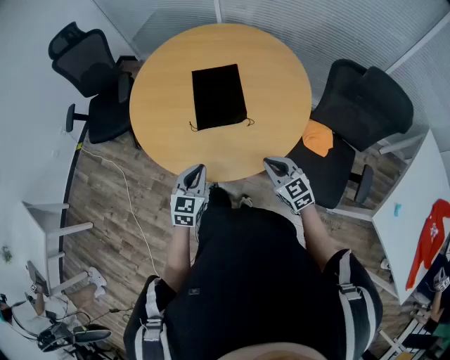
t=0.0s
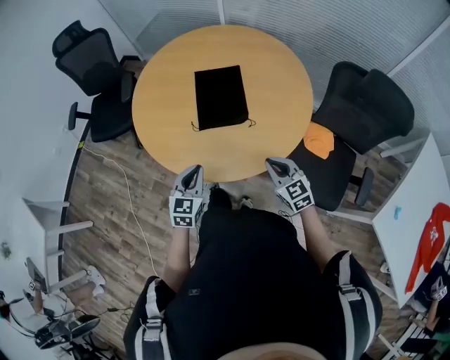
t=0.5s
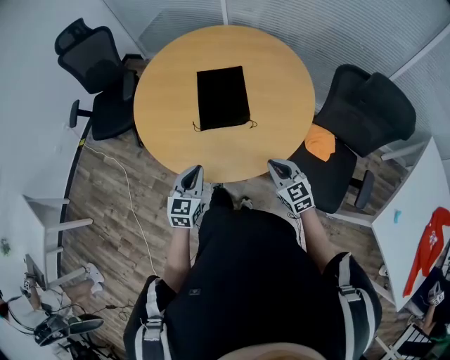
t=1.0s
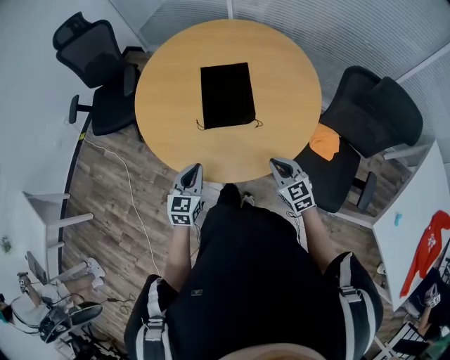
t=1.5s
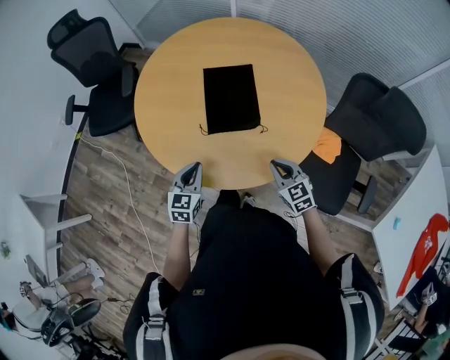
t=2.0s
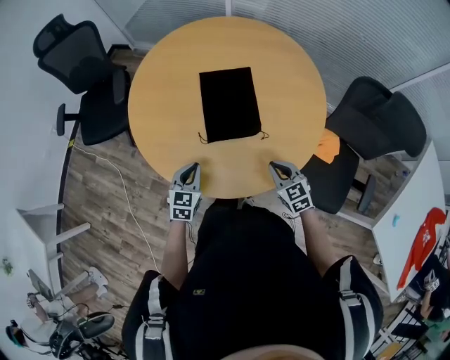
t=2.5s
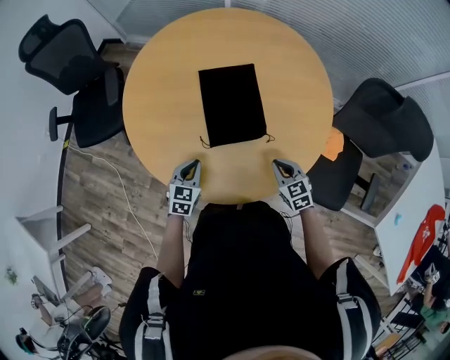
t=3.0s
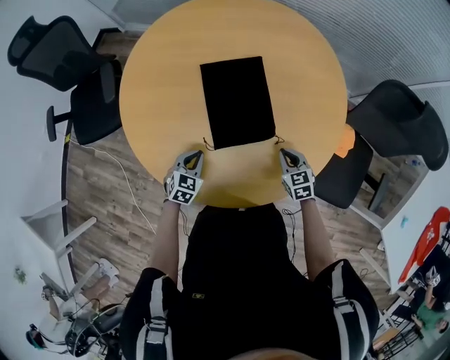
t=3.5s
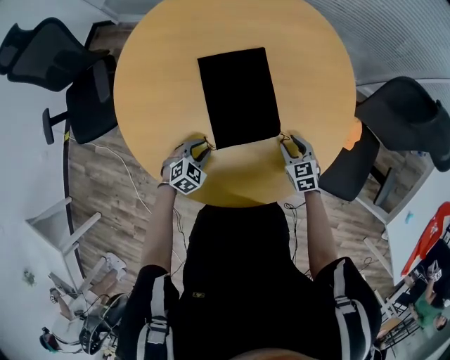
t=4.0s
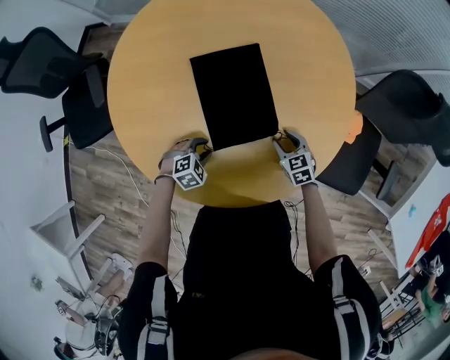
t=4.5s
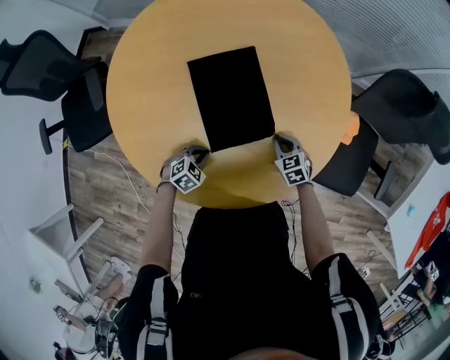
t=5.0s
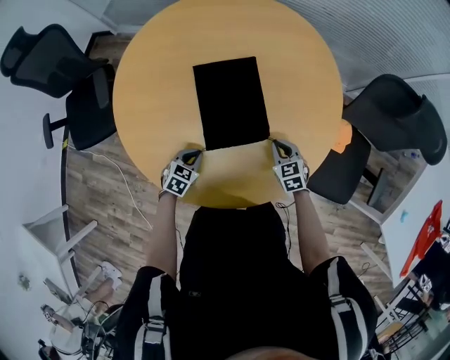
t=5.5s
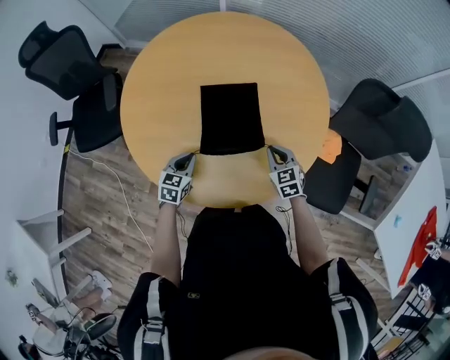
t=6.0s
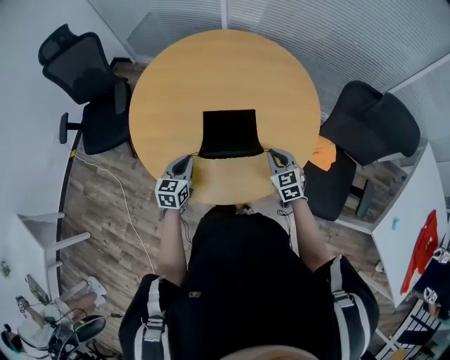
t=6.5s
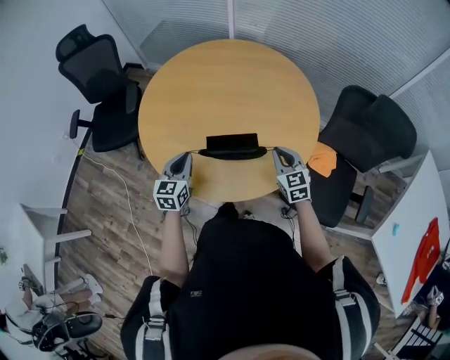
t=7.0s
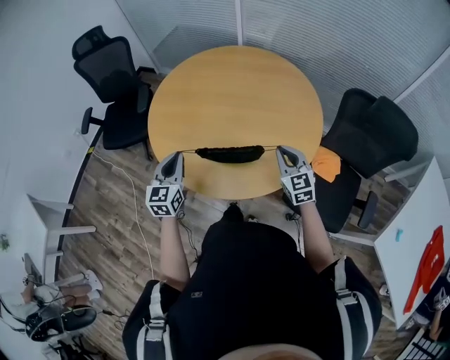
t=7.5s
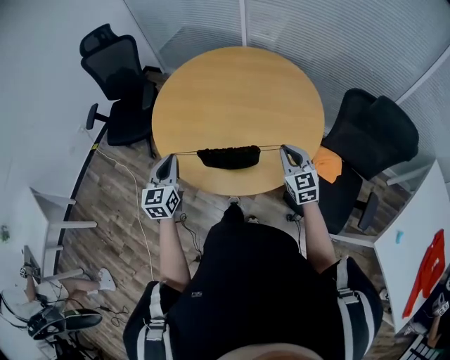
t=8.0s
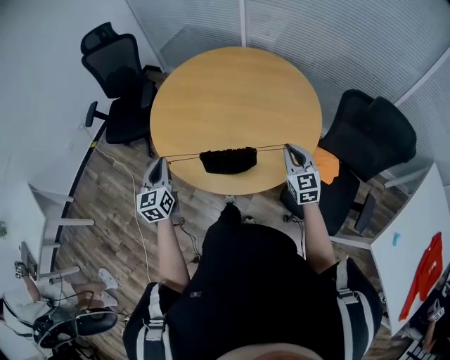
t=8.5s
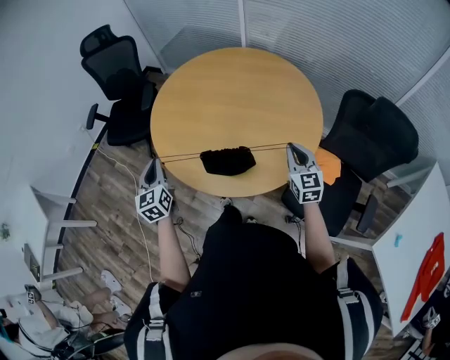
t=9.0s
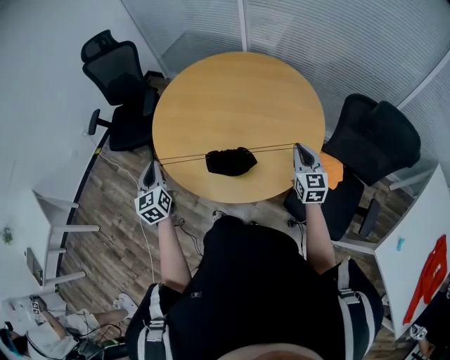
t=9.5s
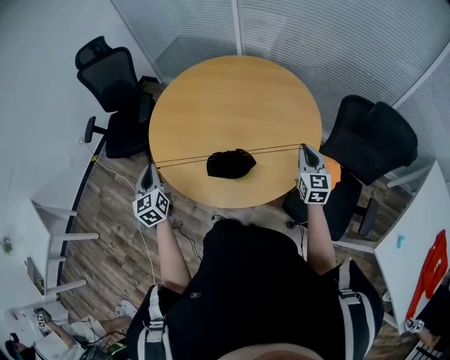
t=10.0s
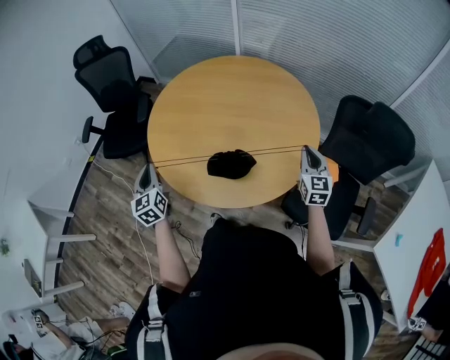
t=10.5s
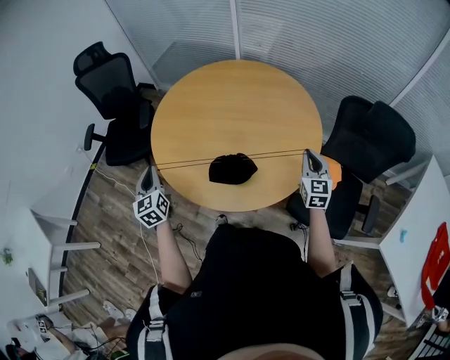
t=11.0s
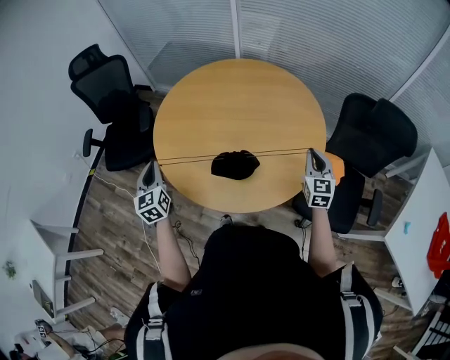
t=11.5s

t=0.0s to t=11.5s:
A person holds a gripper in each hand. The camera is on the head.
t=0.0s to t=2.0s: The right gripper shifts about 5 cm forward. The left gripper is displaced forward and to the left by about 10 cm.
t=2.0s to t=4.0s: The two grippers go some 20 cm downward. The left gripper turns by roughly 50 degrees; the right gripper changes its angle by approximately 20 degrees, and opens up.
t=4.0s to t=6.0s: The grippers both shift upward by some 10 cm. The left gripper changes its angle by approximately 40 degrees; the right gripper closes.
t=6.0s to t=7.5s: Both grippers travel together upward and backward, approximately 20 cm. The right gripper rotates some 20 degrees, while the left gripper swivels some 30 degrees.
t=7.5s to t=9.5s: The left gripper goes approximately 10 cm to the left, and rotates approximately 30 degrees, while the right gripper shifts about 10 cm to the right.
t=9.5s to t=11.5s: The left gripper moves forward and to the left, approximately 10 cm.

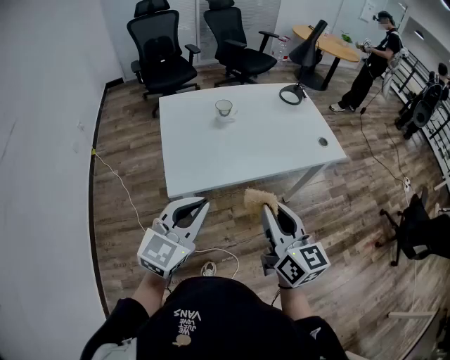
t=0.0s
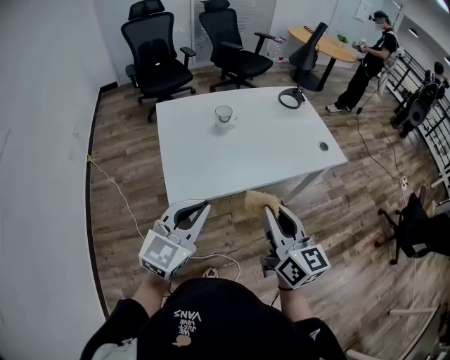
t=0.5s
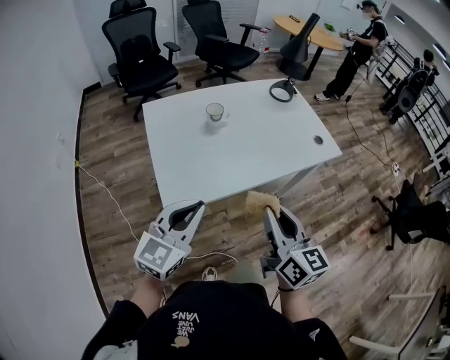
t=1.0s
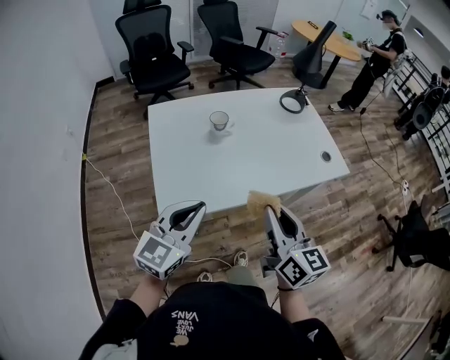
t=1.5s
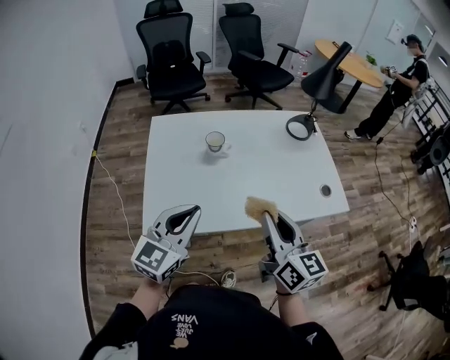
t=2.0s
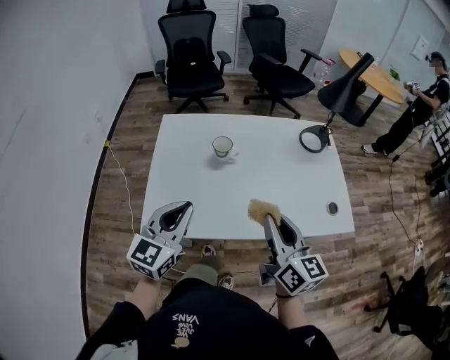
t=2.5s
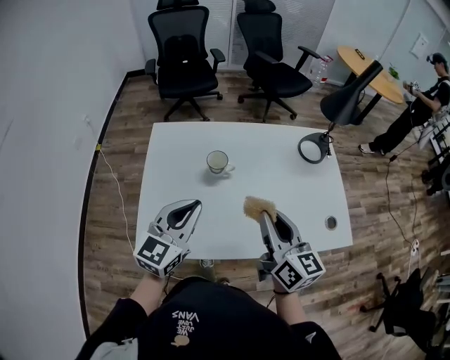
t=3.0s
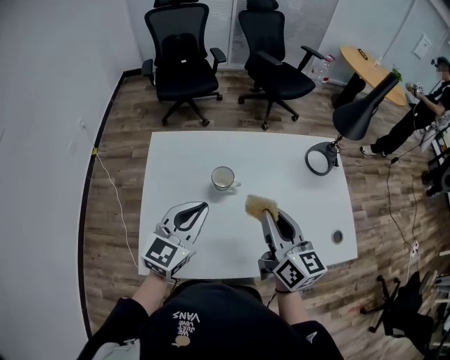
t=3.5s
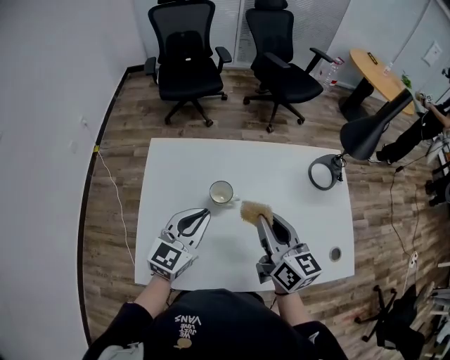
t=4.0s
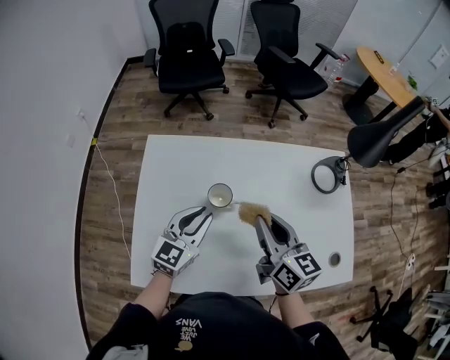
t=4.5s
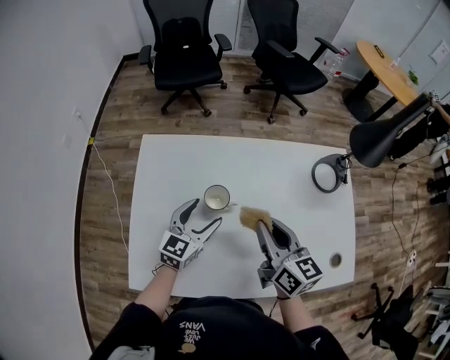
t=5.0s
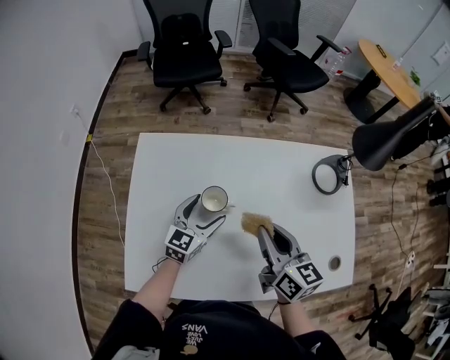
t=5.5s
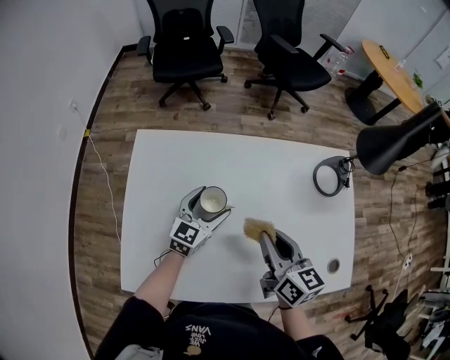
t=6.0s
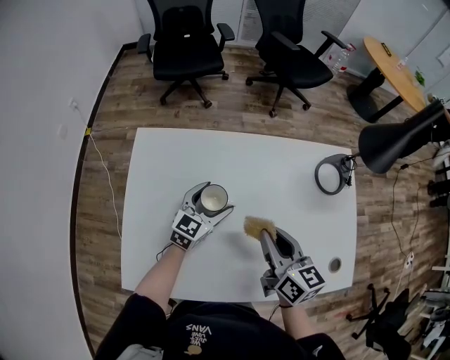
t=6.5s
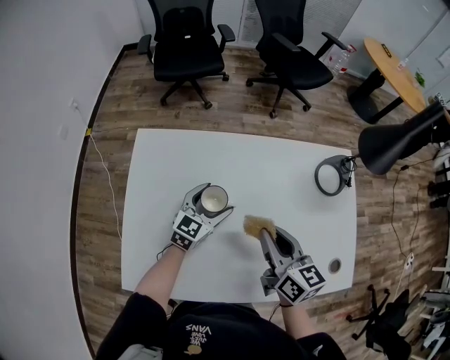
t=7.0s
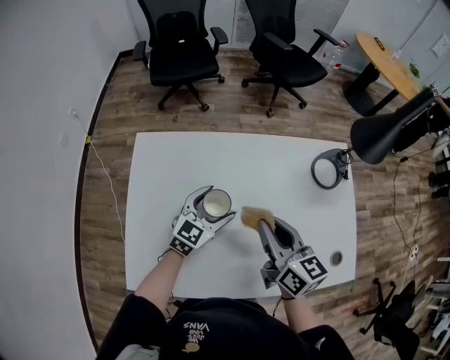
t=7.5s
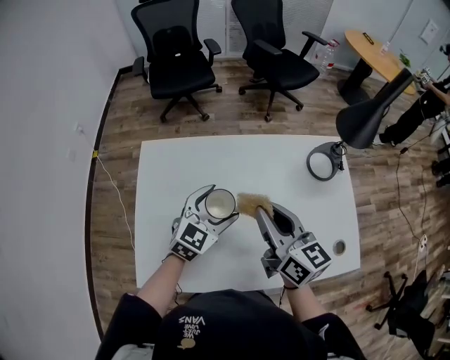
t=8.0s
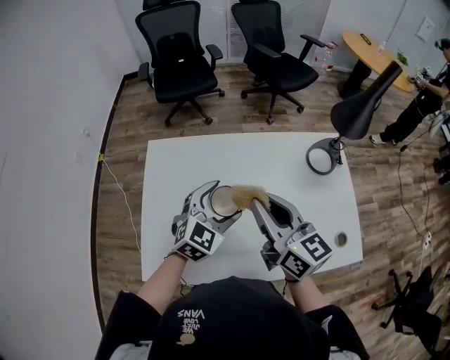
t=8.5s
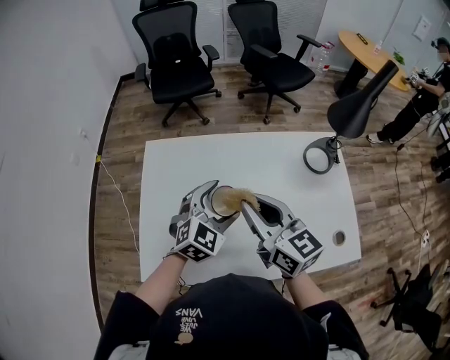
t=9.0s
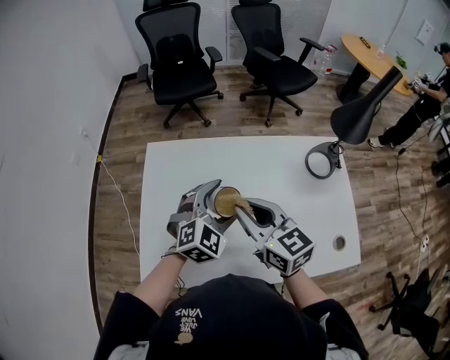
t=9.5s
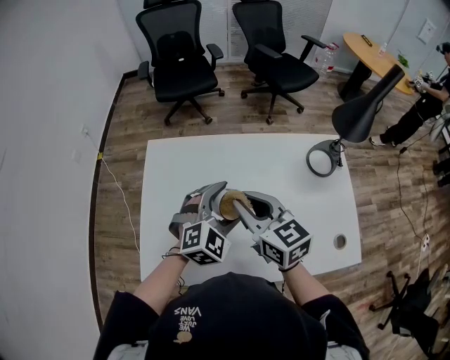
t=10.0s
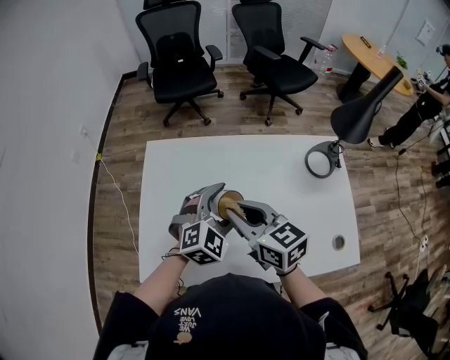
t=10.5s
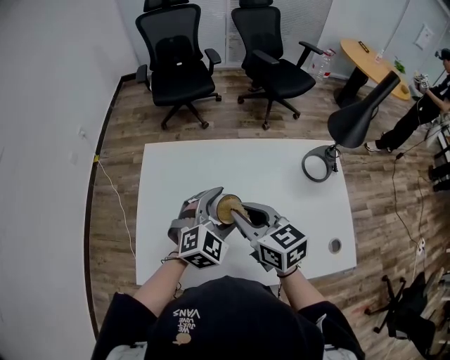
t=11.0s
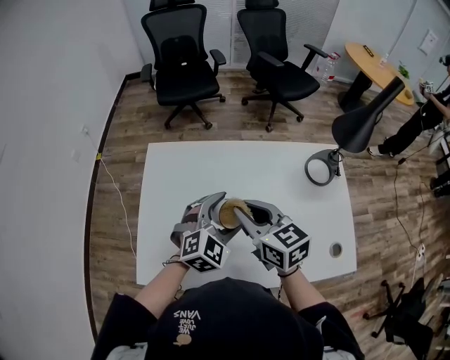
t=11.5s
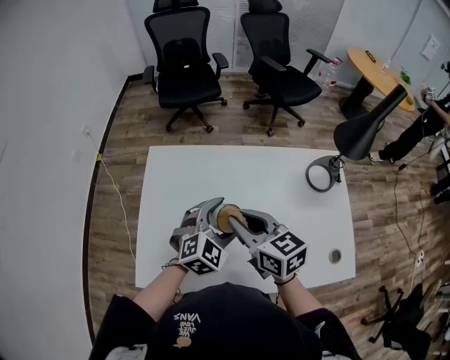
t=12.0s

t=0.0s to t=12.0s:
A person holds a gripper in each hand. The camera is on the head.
t=0.0s to t=2.0s: The two grippers go roughly 20 cm forward.
t=2.0s to t=4.0s: Both grippers move forward, roughly 25 cm.
t=4.0s to t=6.0s: The left gripper travels downward and forward by roughly 20 cm, and opens. Meanwhile the right gripper is displaced downward by approximately 5 cm.
t=6.0s to t=8.0s: Both grippers move upward, some 10 cm.
t=8.0s to t=10.0s: The right gripper is displaced to the left by roughly 5 cm, and turns by some 20 degrees. Meanwhile the left gripper rotates approximately 30 degrees.
t=10.0s to t=12.0s: The grippers move only a little.

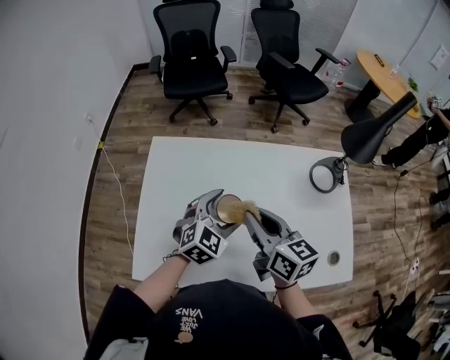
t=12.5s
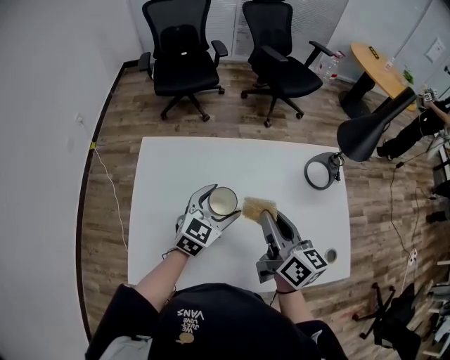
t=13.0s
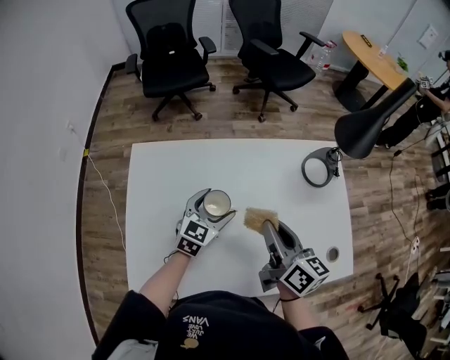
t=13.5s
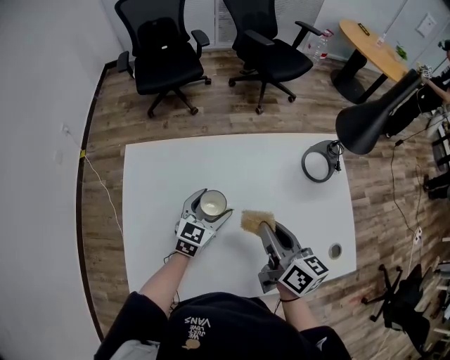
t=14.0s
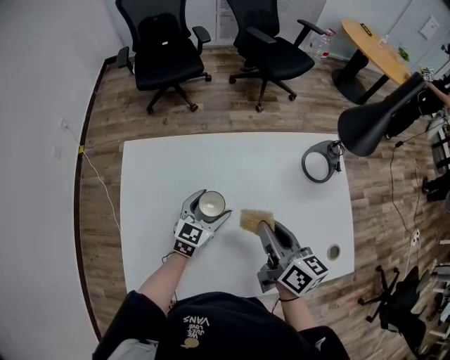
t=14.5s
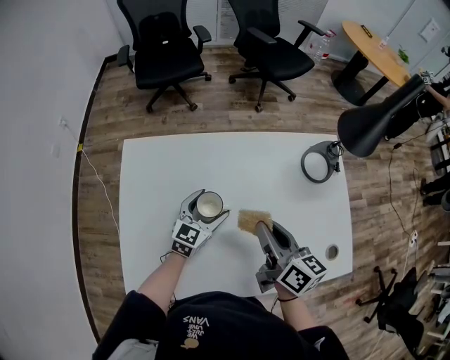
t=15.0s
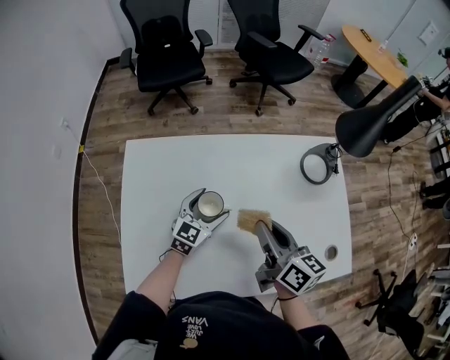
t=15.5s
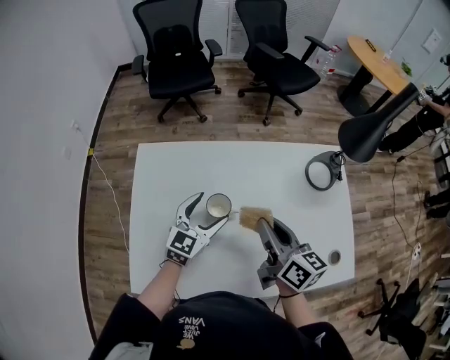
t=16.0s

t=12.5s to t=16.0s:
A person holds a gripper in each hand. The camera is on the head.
t=12.5s to t=14.5s: The right gripper shifts approximately 10 cm to the right and downward, while the left gripper is displaced downward and forward by roughly 10 cm, and turns by about 20 degrees.
t=14.5s to t=16.0s: The left gripper heads upward, covering roughly 5 cm.
